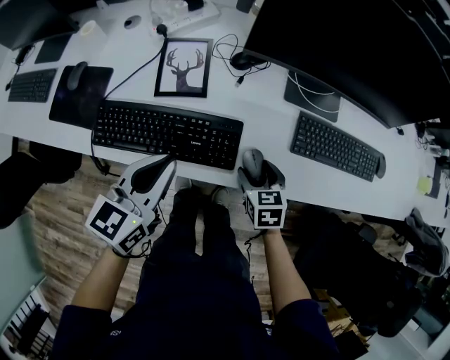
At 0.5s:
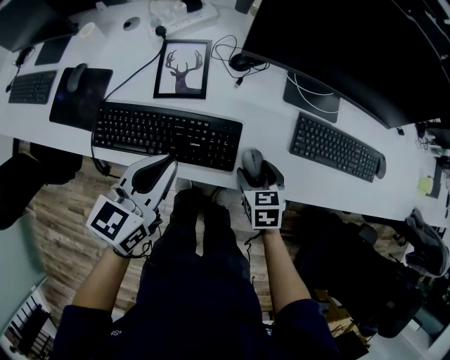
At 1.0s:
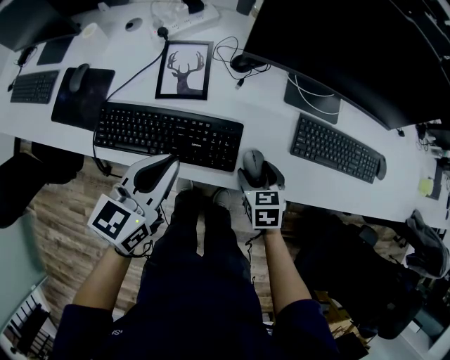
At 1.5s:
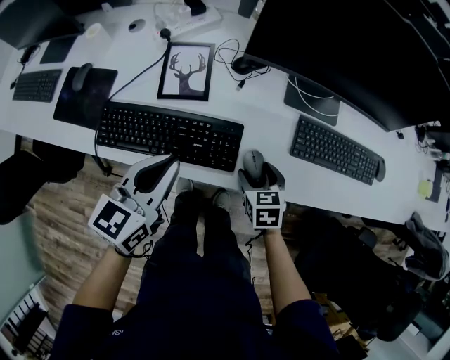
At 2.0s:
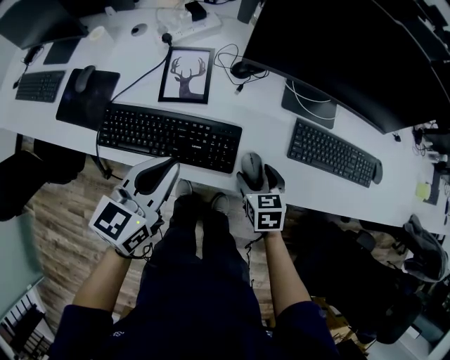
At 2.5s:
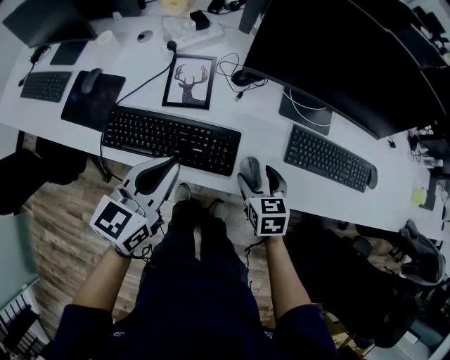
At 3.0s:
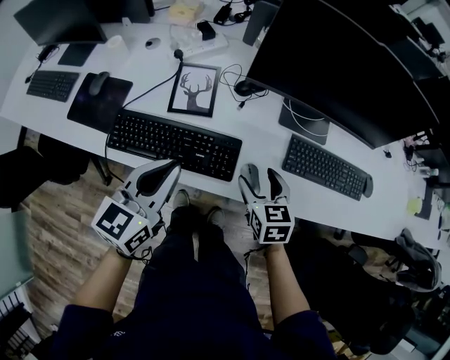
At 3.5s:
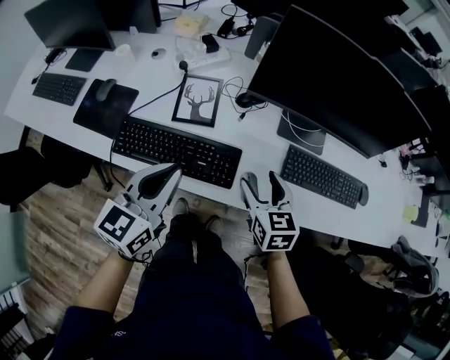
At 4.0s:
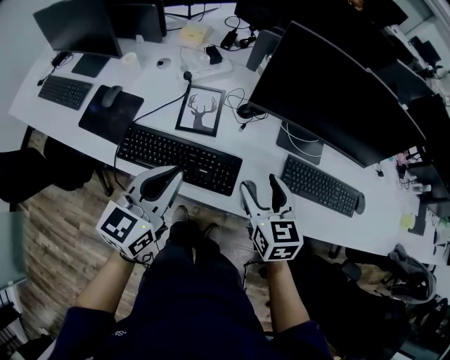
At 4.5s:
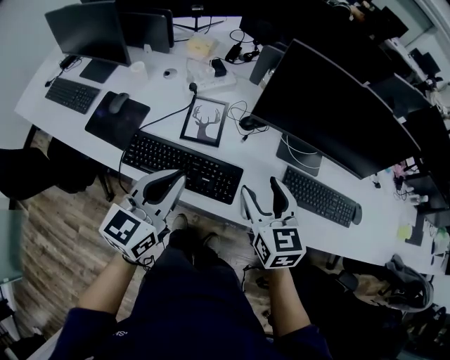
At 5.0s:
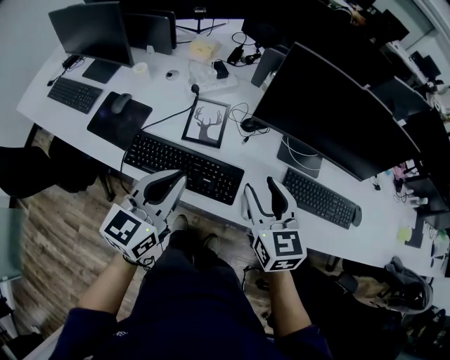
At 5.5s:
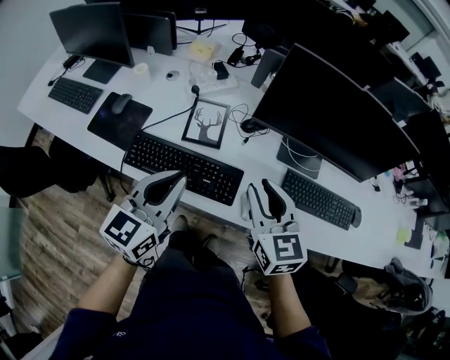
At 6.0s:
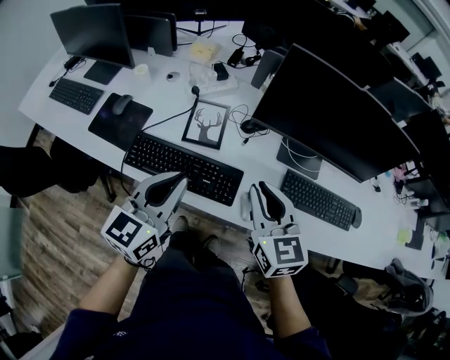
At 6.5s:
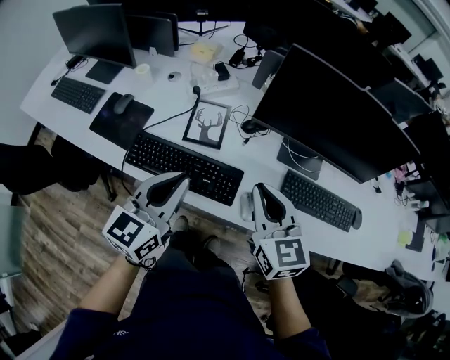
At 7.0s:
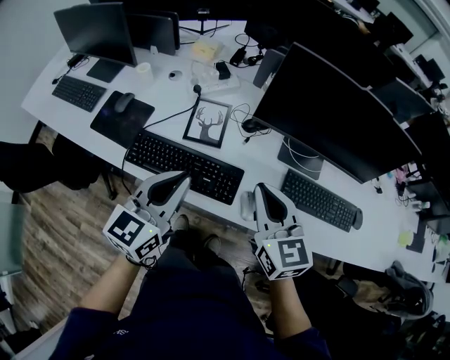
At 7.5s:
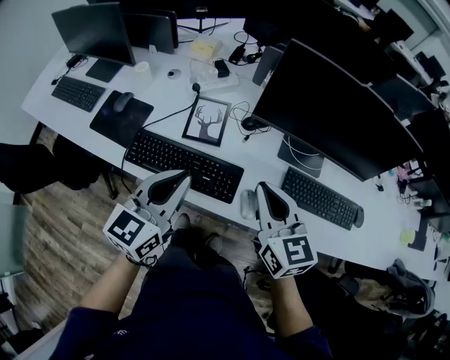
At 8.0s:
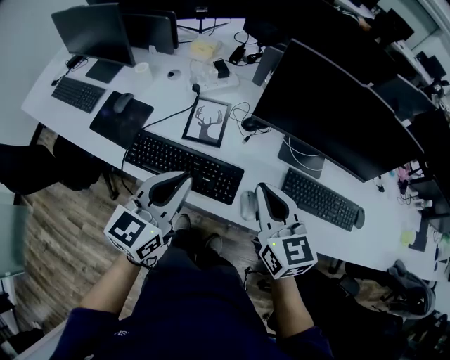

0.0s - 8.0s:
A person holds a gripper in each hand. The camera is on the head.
0.0s - 2.0s: The grippers move only a little.
2.0s - 4.0s: The right gripper is displaced upward by about 20 cm, and swivels about 20 degrees; the left gripper shifts some 10 cm upward.
4.0s - 6.0s: The right gripper is displaced upward by roughly 10 cm, and closes up.
6.0s - 8.0s: There are only small adjustments of the grippers.

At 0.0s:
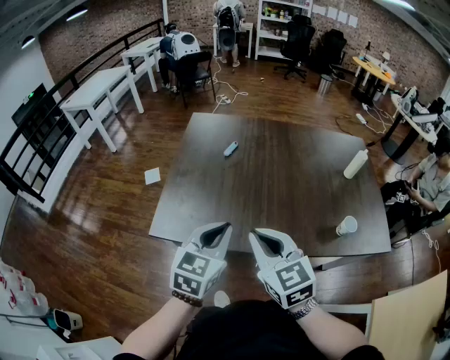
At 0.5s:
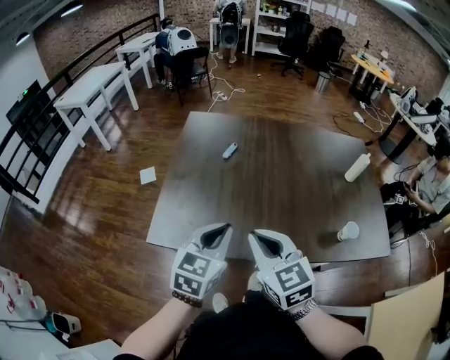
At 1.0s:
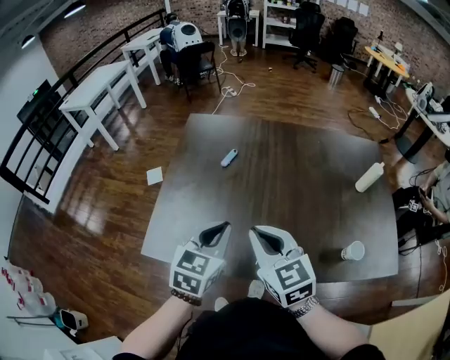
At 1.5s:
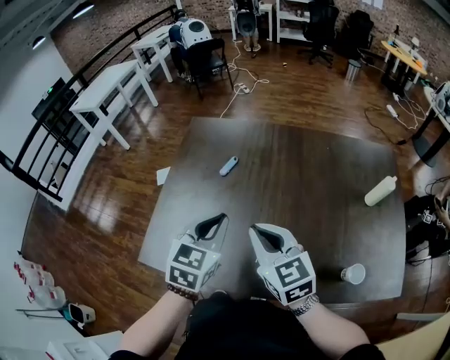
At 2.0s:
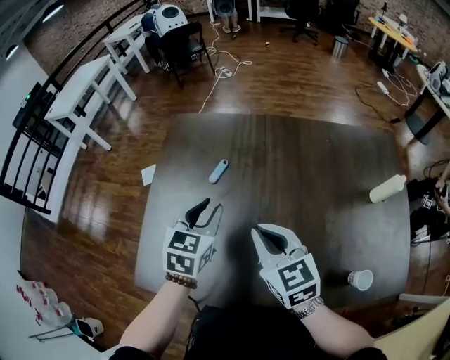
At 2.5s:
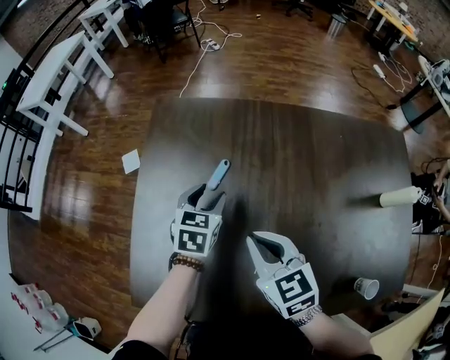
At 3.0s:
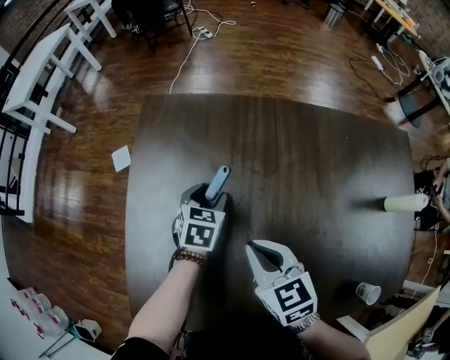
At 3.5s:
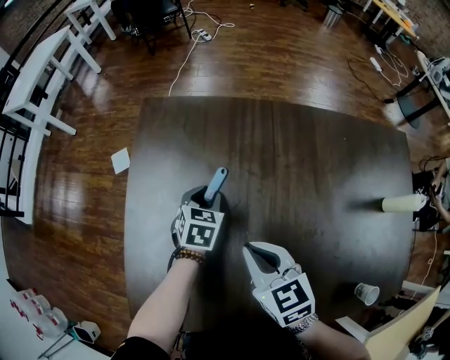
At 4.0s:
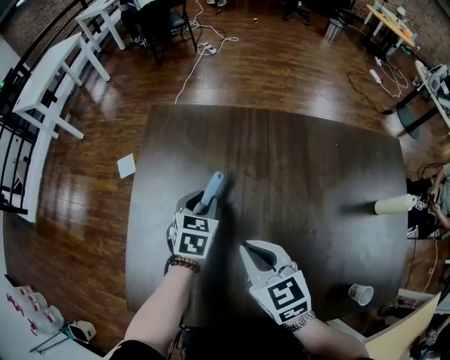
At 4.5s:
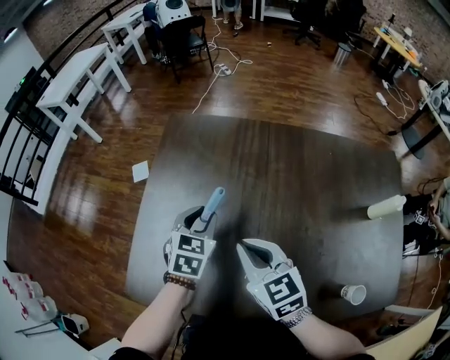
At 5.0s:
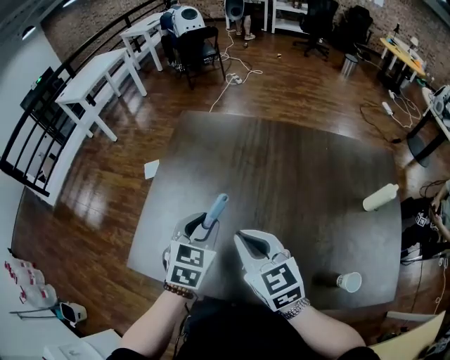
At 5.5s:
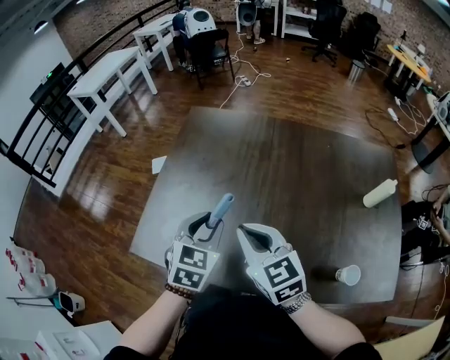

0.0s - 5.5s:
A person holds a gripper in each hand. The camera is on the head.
0.0s - 2.0s: Both grippers move forward, some 30 cm. The left gripper opens up.
2.0s - 3.5s: The right gripper moves downward, forward and to the left, approximately 15 cm; the left gripper is displaced downward and forward by approximately 25 cm, and opens and closes again.
3.5s - 5.5s: The left gripper moves backward and upward, approximately 35 cm. Meanwhile the right gripper moves backward and upward, approximately 20 cm, and changes its angle by roughly 20 degrees.

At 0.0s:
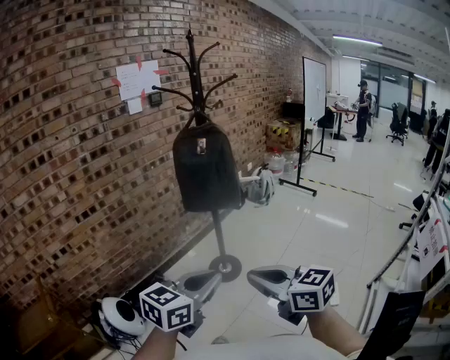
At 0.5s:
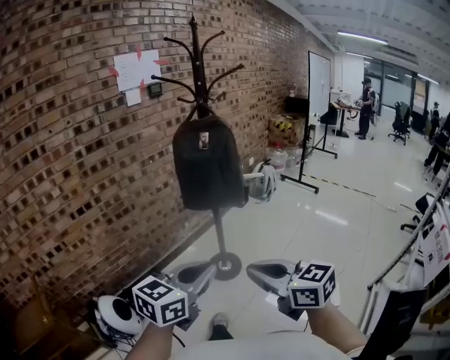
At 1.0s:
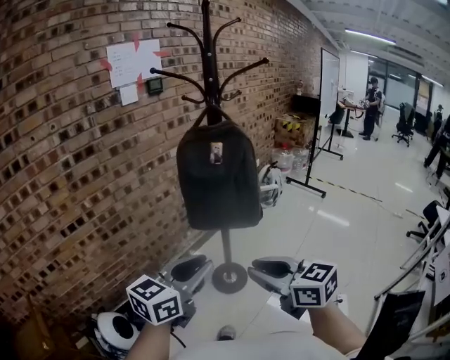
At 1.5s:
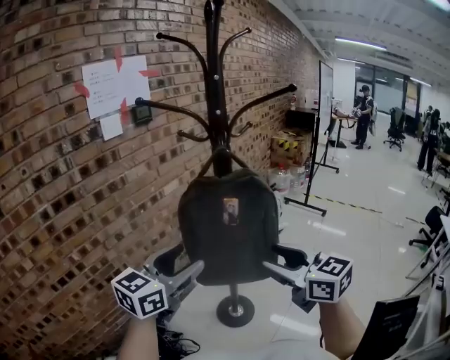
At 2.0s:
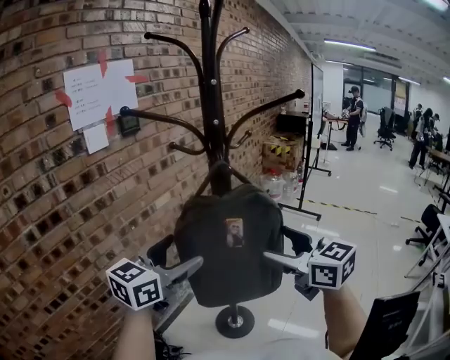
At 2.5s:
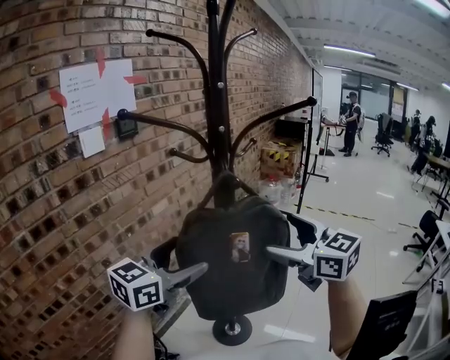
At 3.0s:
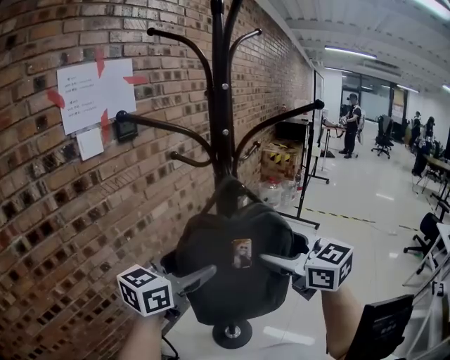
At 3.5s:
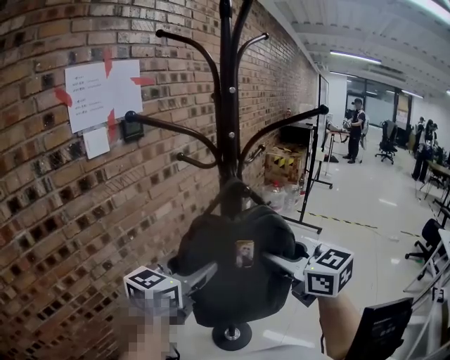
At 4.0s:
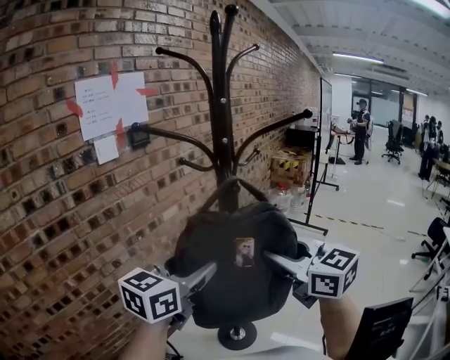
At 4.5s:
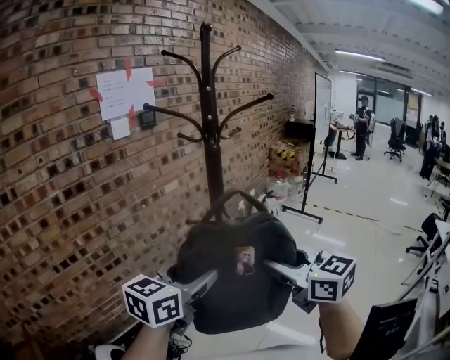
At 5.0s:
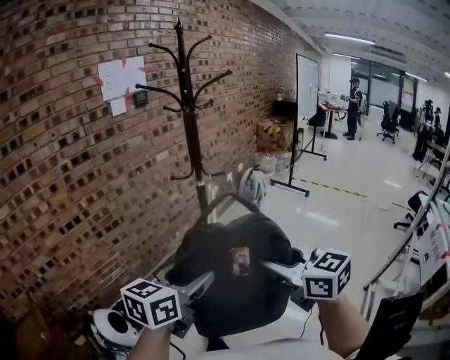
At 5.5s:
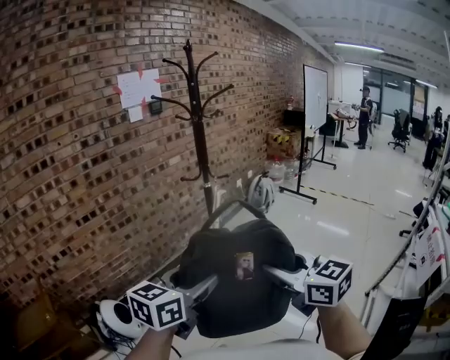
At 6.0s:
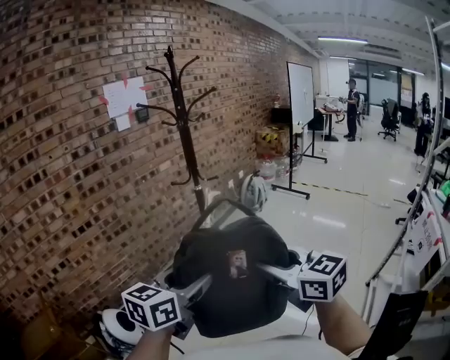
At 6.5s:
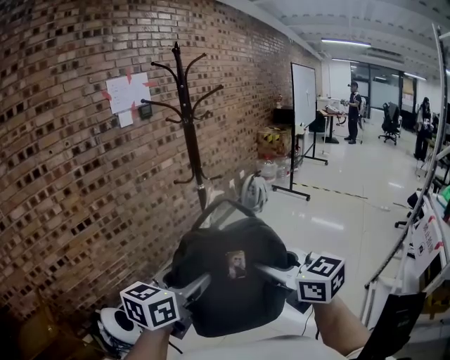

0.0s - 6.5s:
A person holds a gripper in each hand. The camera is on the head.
0.0s - 2.0s: Both grippers are carried forward, roughly 50 cm. The right gripper turns by approximately 20 degrees, and opens its fingers. Meanwhile the left gripper opens its fingers.
2.0s - 4.5s: The left gripper shifts roughly 20 cm backward and to the right, and closes up. The right gripper heads backward, covering some 20 cm, and closes up.
4.5s - 6.5s: The grippers both shift backward by some 30 cm.

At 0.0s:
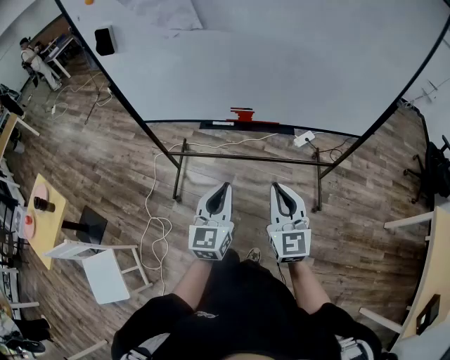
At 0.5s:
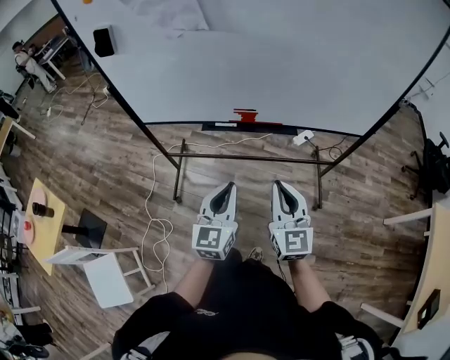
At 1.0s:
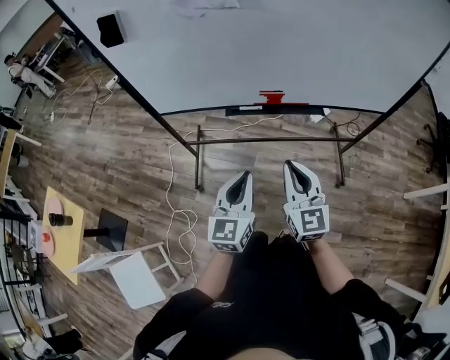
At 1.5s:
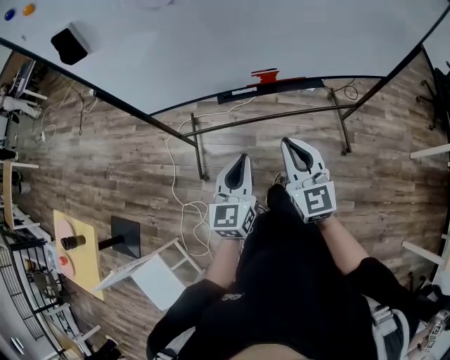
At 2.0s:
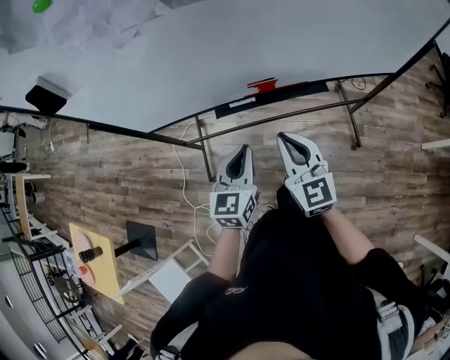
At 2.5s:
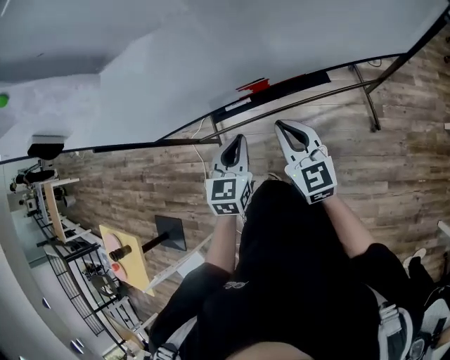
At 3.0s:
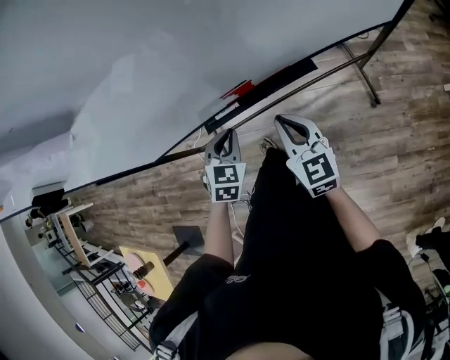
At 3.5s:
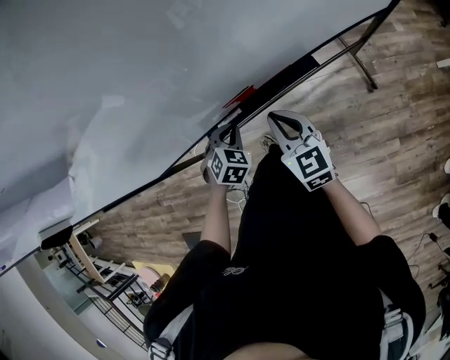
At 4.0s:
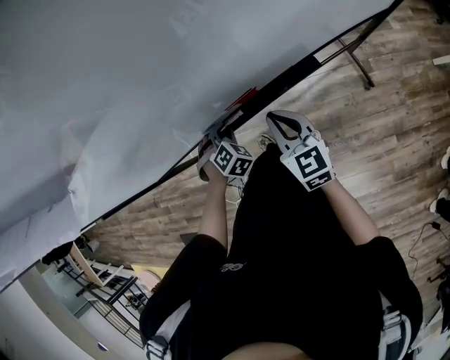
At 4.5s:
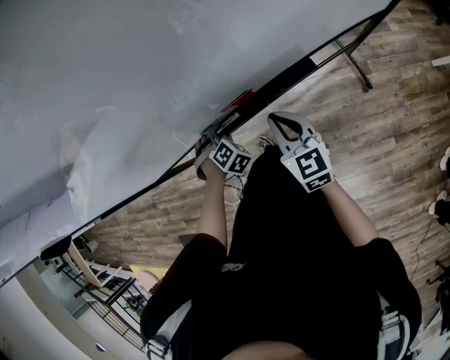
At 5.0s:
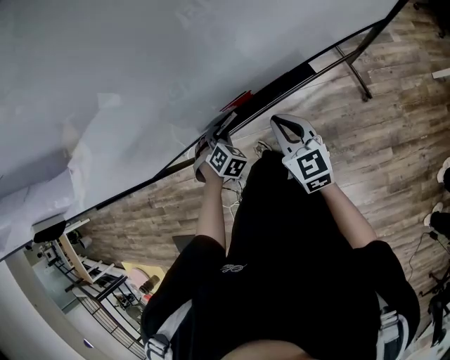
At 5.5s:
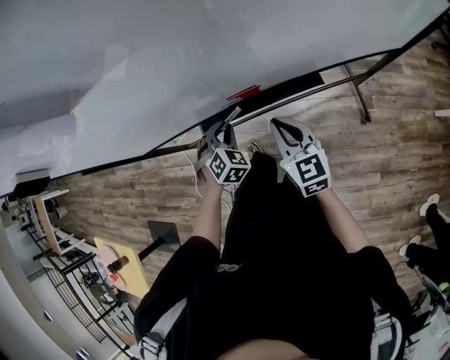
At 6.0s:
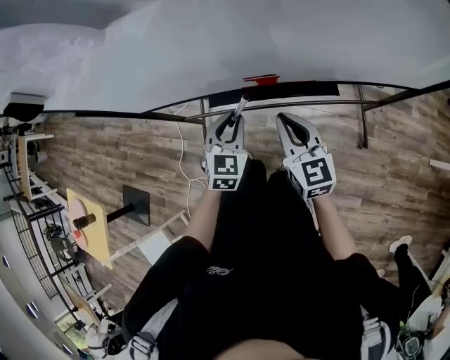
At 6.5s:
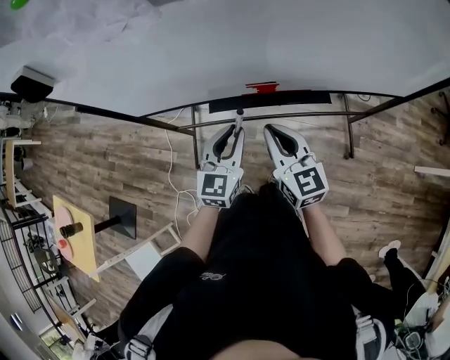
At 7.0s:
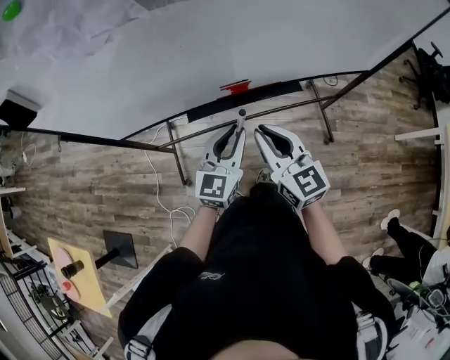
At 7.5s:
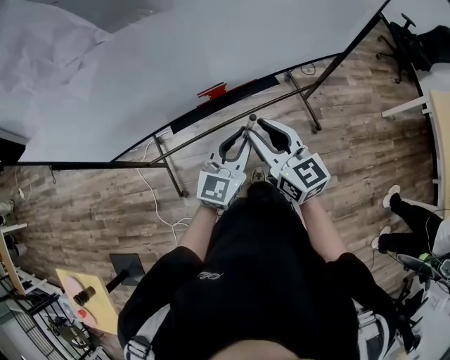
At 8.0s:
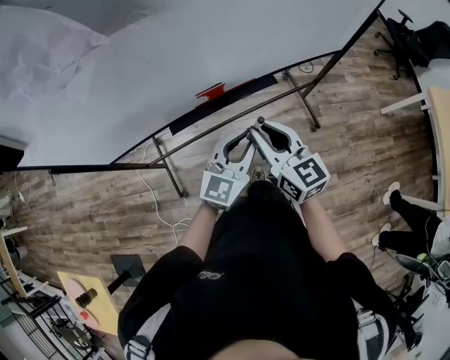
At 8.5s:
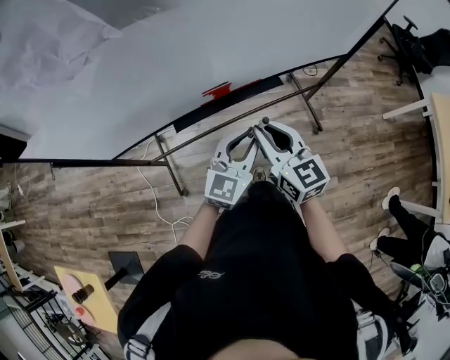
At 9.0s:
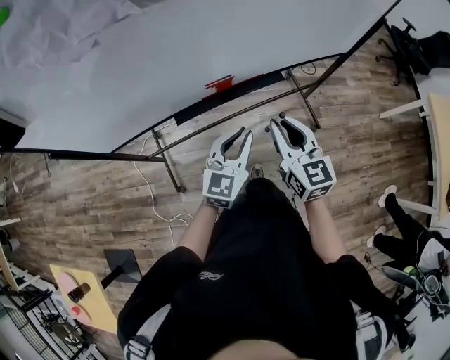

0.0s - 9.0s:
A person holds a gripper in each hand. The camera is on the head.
0.0s - 2.0s: The left gripper heads forward, to the left and downward, covering roughly 20 cm. Meanwhile the right gripper moves forward and to the left, roughly 20 cm.
2.0s - 4.5s: The right gripper moves forward, downward and to the right, some 20 cm, while the left gripper heads downward and forward, covering approximately 30 cm, and tilts its fingers approximately 40 degrees downward.
4.5s - 7.0s: The left gripper goes roughly 30 cm upward and backward, and points its fingers roughly 50 degrees further upward, while the right gripper is displaced upward, backward and to the left by some 20 cm.
7.0s - 9.0s: The right gripper travels to the right by about 5 cm.
